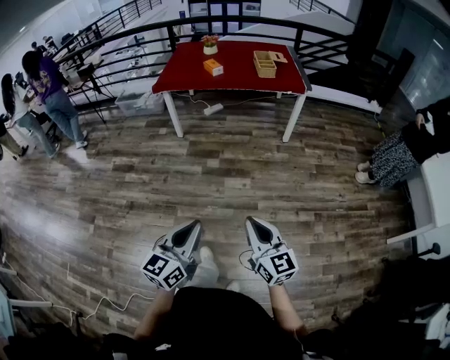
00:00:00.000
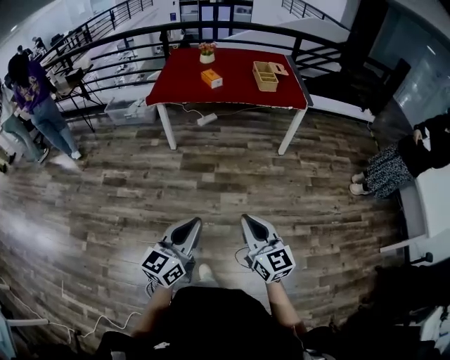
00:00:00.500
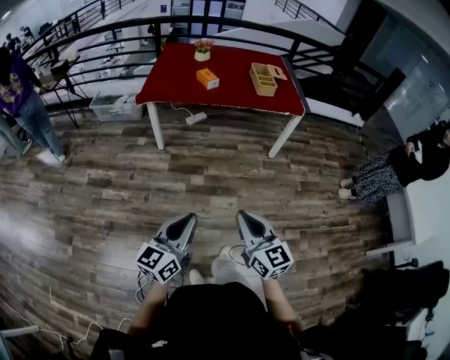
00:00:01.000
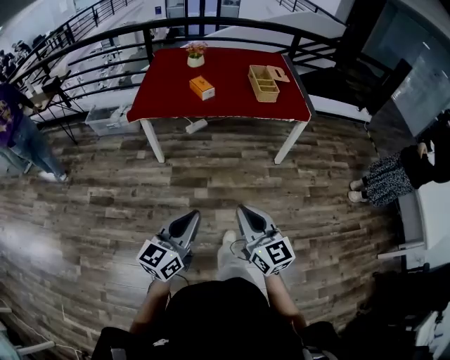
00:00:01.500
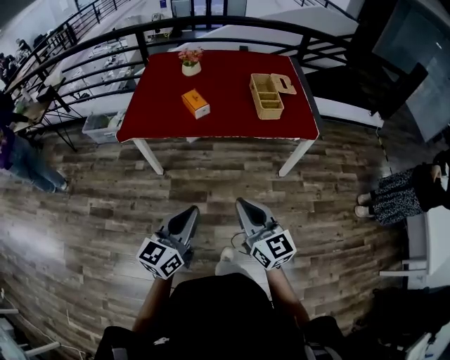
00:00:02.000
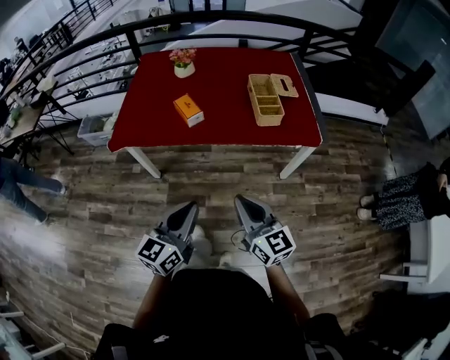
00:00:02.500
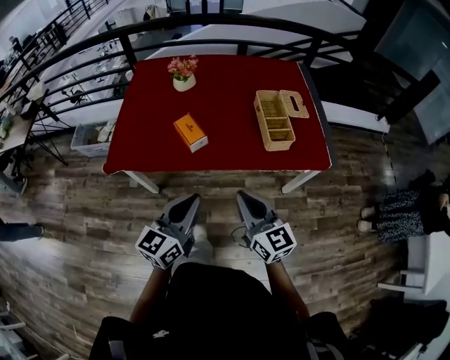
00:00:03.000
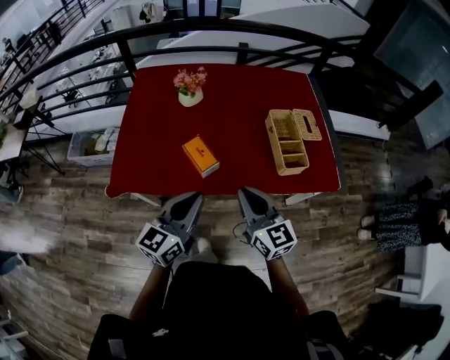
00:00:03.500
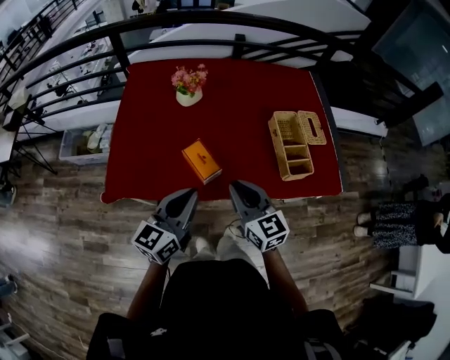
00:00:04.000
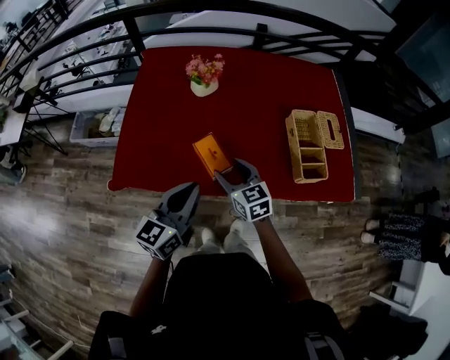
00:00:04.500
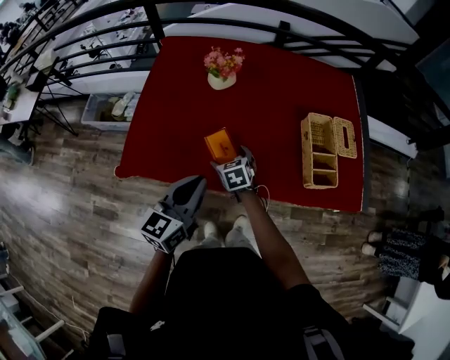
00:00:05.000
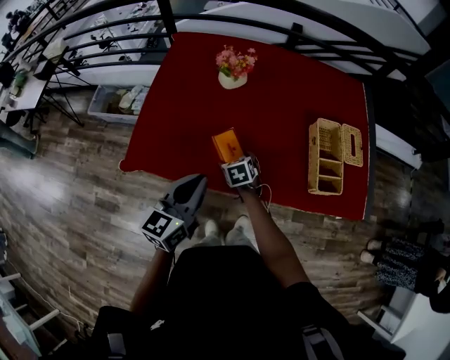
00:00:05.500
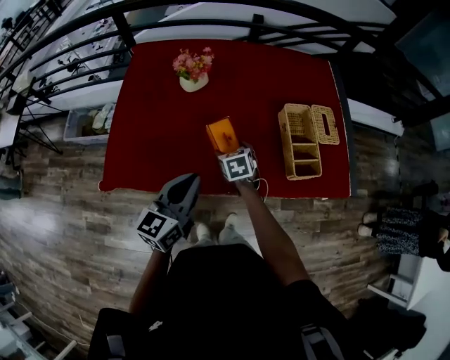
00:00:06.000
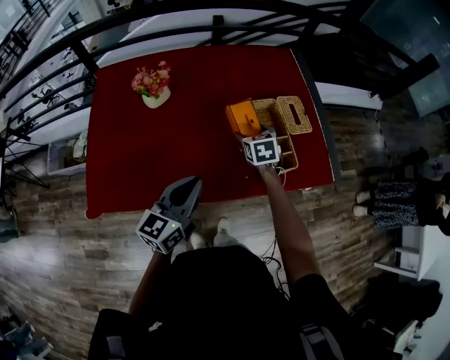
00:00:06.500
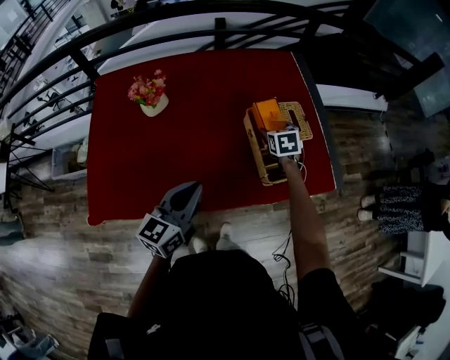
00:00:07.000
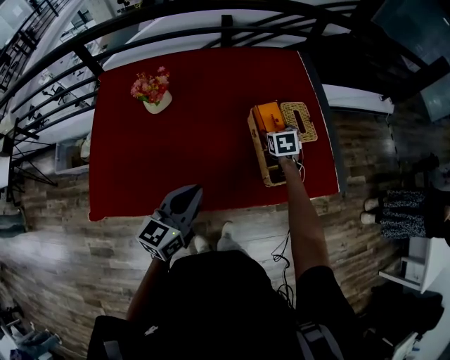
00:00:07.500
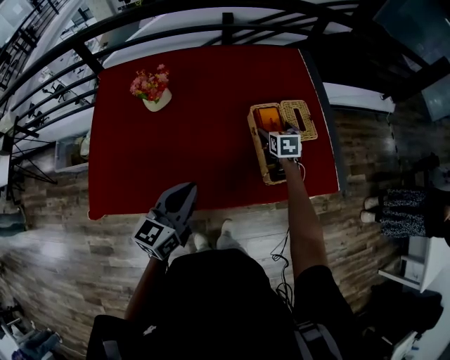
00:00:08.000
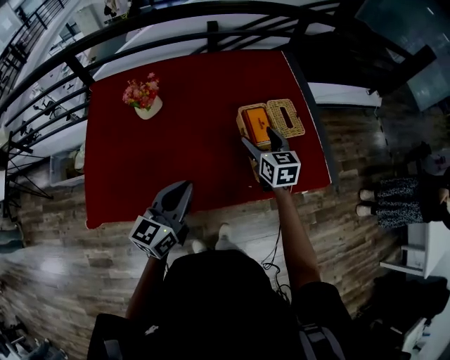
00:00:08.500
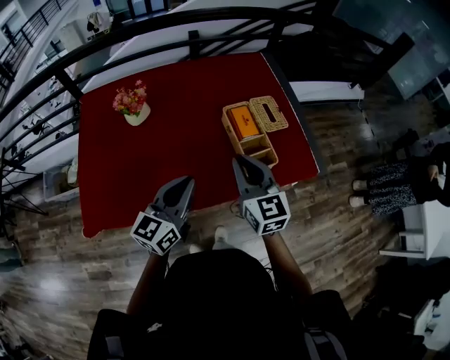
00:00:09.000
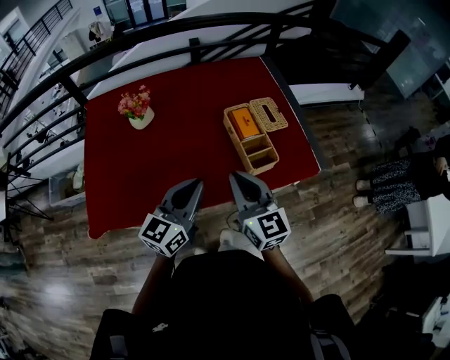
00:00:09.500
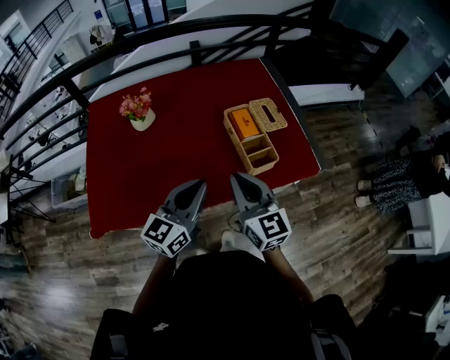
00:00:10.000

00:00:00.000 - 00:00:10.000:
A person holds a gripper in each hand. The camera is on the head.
00:00:00.000 - 00:00:02.000: The pair of grippers is taken forward, about 60 cm.
00:00:02.000 - 00:00:04.000: The two grippers travel together, forward, approximately 50 cm.
00:00:04.000 - 00:00:06.000: The left gripper travels forward by some 5 cm; the right gripper moves downward and forward, some 25 cm, tips its fingers downward by about 40 degrees, and opens its fingers.
00:00:06.000 - 00:00:08.000: The left gripper is displaced to the right and forward by approximately 10 cm. The right gripper is displaced to the right and forward by about 35 cm, and changes its angle by some 20 degrees.
00:00:08.000 - 00:00:10.000: The left gripper goes approximately 10 cm upward, to the right and backward. The right gripper is displaced backward and upward by approximately 40 cm, angles its fingers upward, by approximately 40 degrees, and closes its fingers.

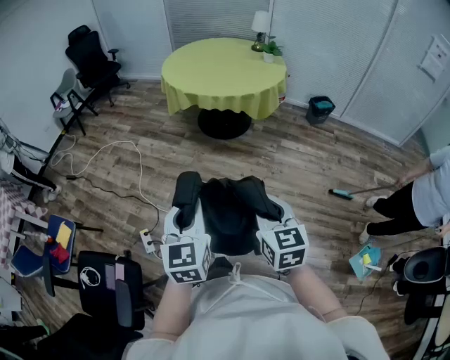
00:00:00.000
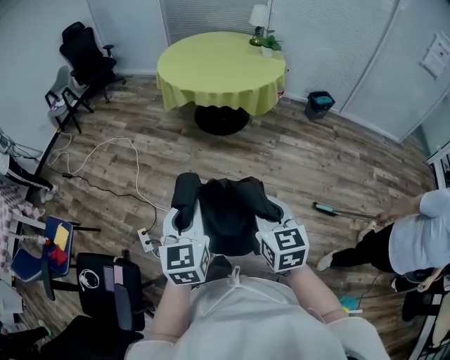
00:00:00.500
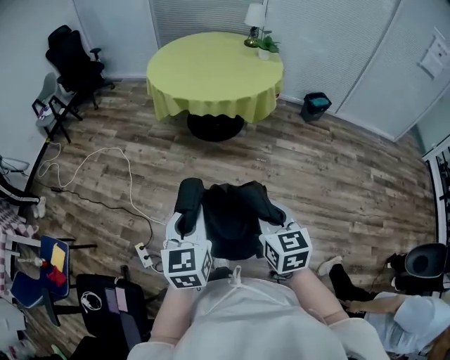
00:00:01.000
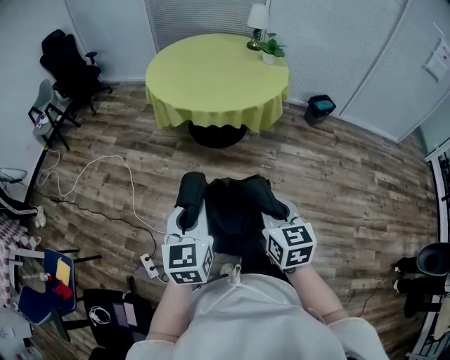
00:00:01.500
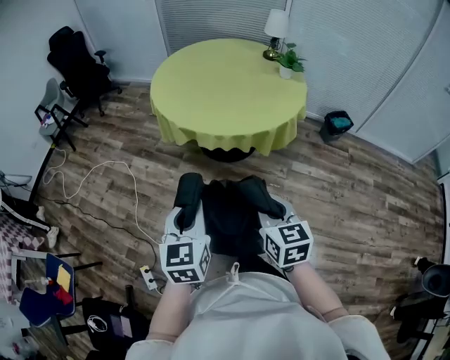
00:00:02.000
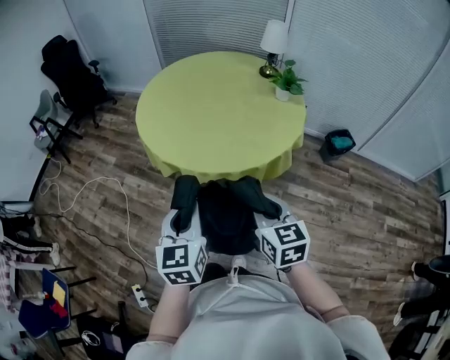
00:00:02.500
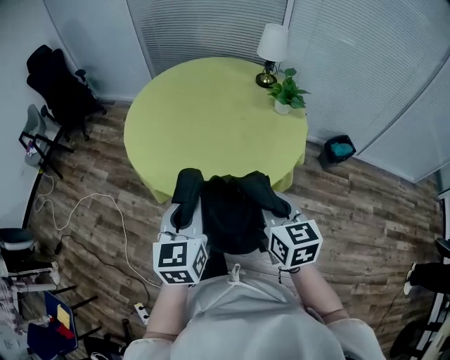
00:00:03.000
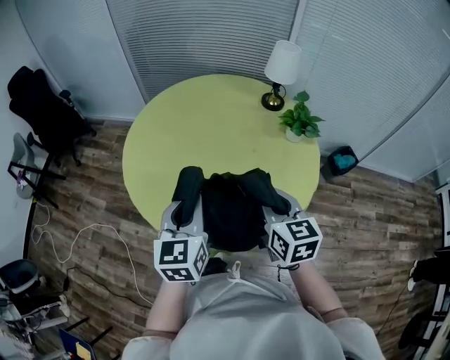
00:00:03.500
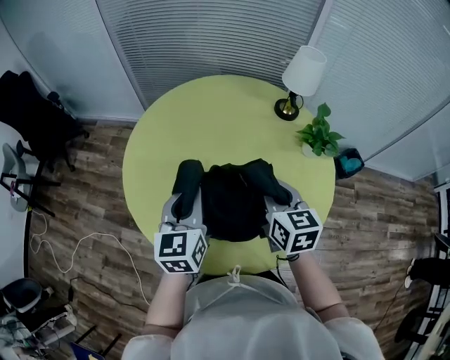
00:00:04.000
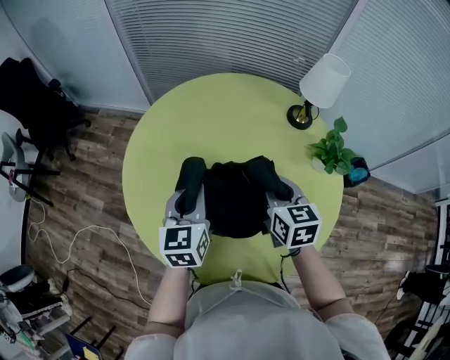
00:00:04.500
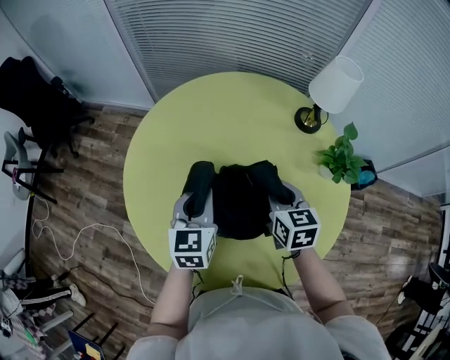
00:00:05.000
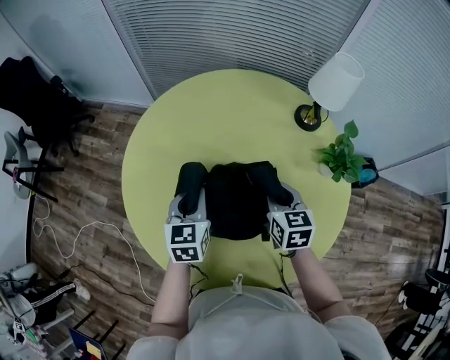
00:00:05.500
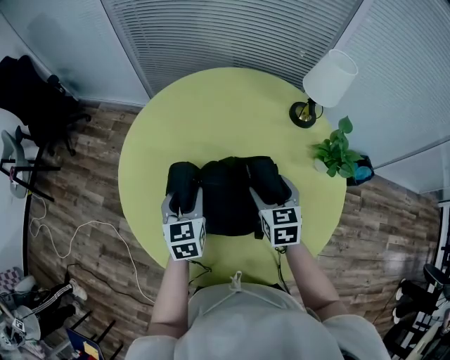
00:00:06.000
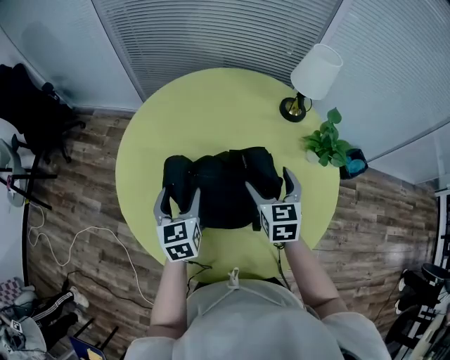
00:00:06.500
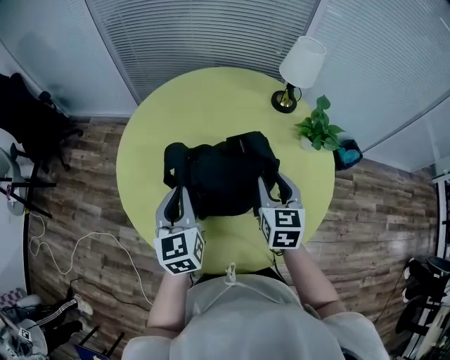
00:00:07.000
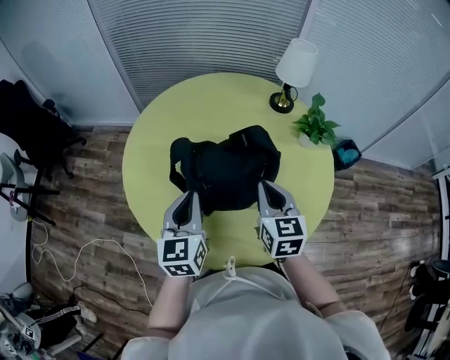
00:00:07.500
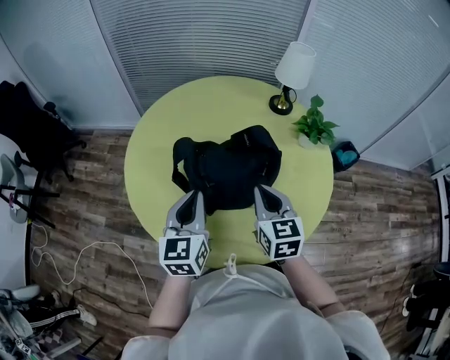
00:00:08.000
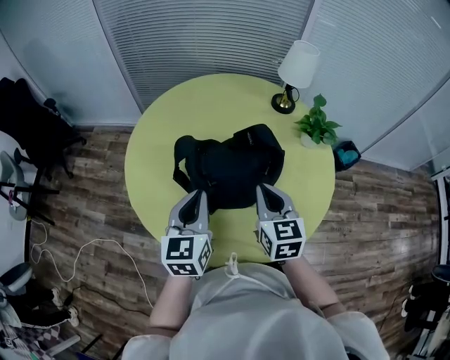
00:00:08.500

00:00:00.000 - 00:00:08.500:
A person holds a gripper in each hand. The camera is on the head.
00:00:00.000 - 00:00:02.000: The two grippers travel together, forward, approximately 40 cm.
00:00:02.000 - 00:00:04.000: The two grippers travel together, forward, some 70 cm.
00:00:04.000 - 00:00:06.500: The left gripper moves downward and forward, some 15 cm, and opens up. Meanwhile the right gripper moves forward and downward, some 15 cm, and opens.
00:00:06.500 - 00:00:08.500: The right gripper heads backward, covering roughly 15 cm, and closes. Meanwhile the left gripper shifts approximately 15 cm backward and upward, and closes its fingers.
